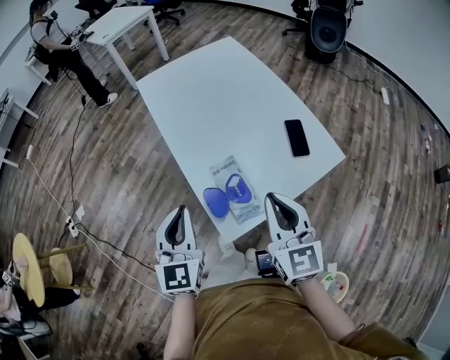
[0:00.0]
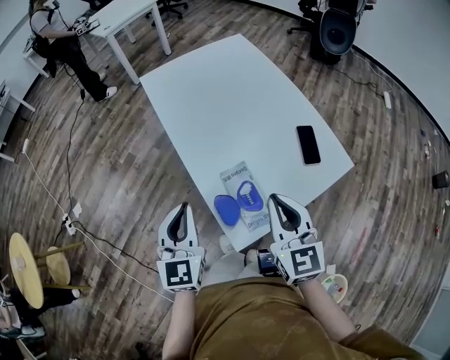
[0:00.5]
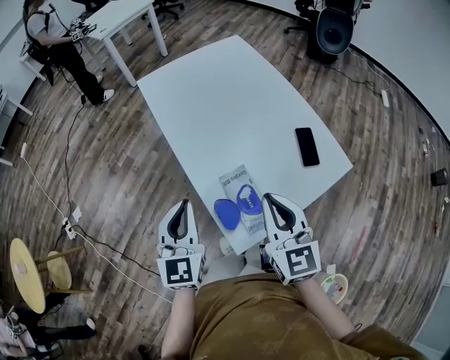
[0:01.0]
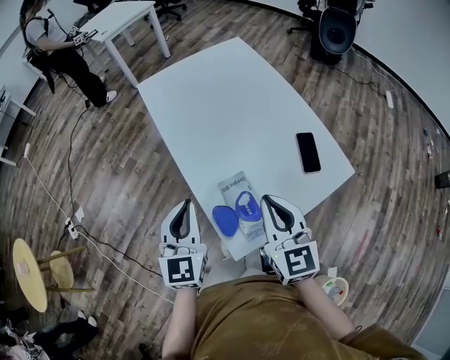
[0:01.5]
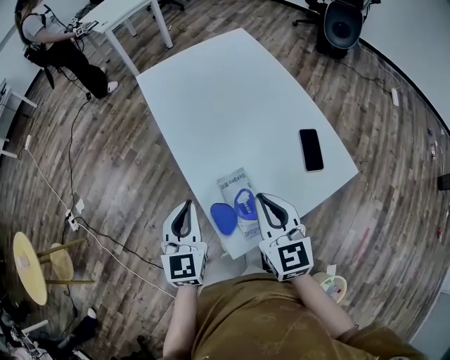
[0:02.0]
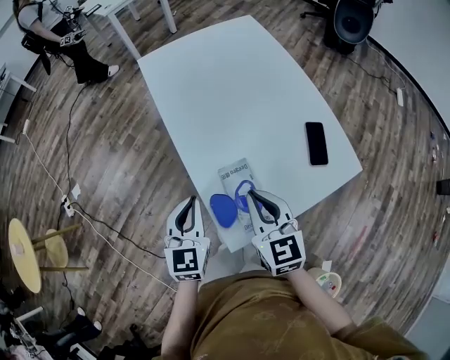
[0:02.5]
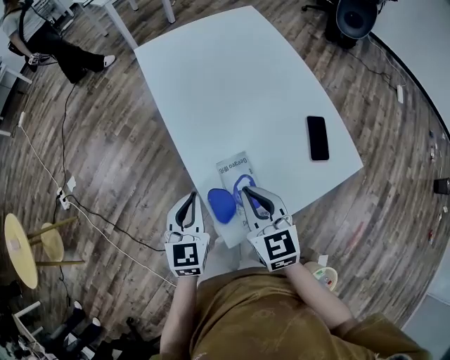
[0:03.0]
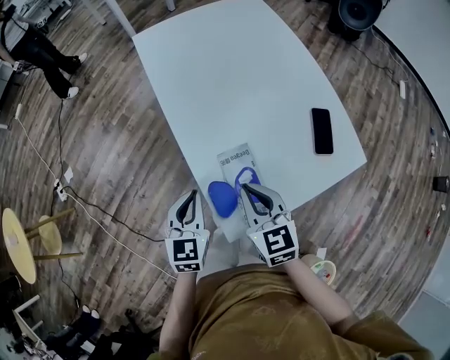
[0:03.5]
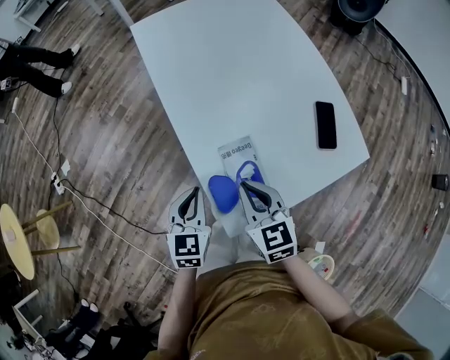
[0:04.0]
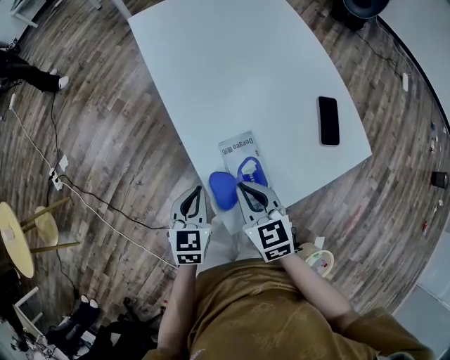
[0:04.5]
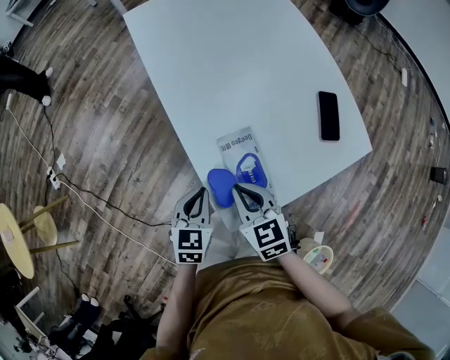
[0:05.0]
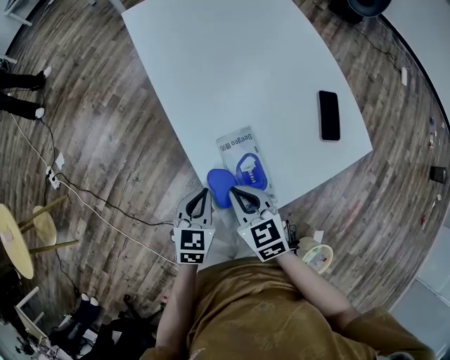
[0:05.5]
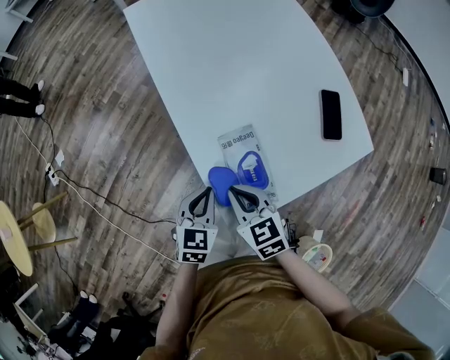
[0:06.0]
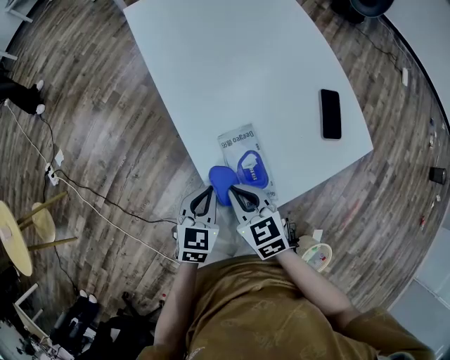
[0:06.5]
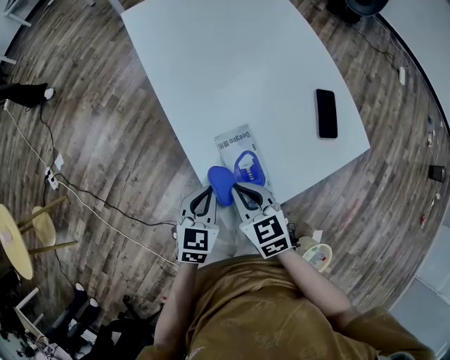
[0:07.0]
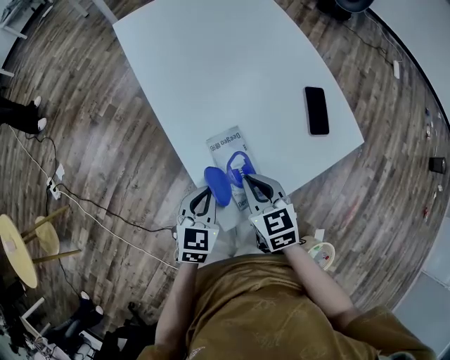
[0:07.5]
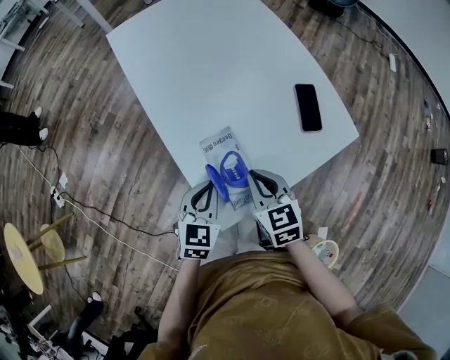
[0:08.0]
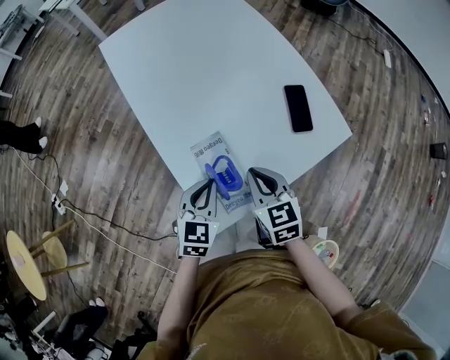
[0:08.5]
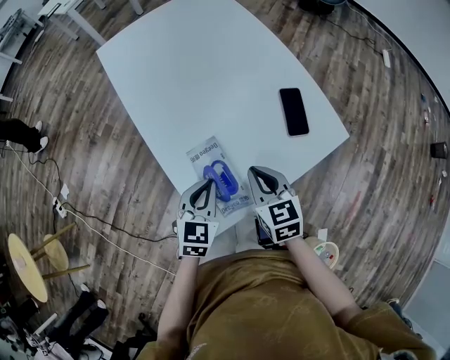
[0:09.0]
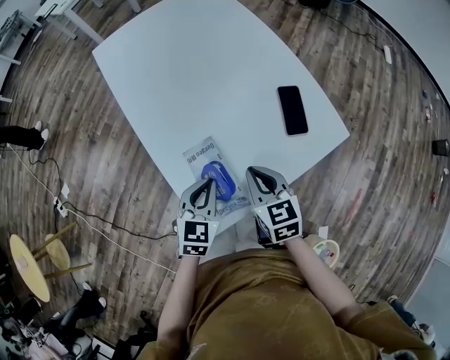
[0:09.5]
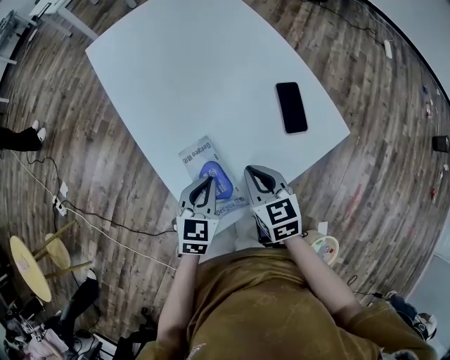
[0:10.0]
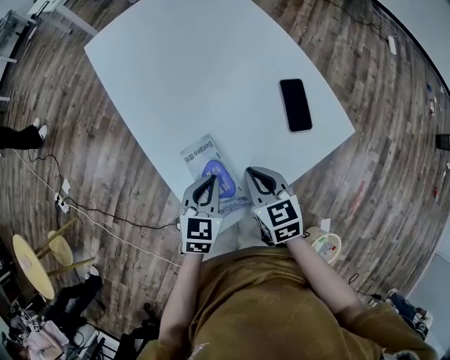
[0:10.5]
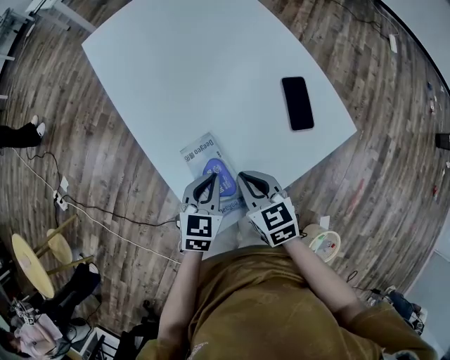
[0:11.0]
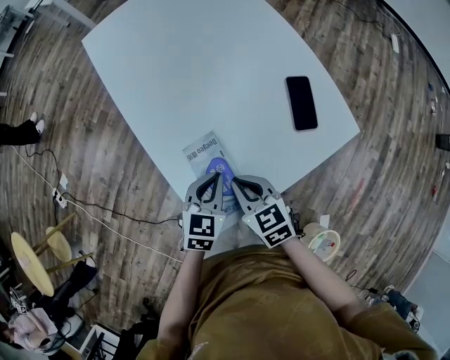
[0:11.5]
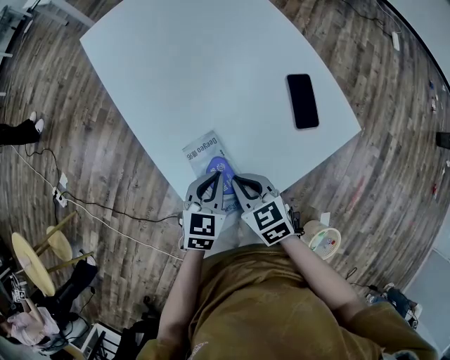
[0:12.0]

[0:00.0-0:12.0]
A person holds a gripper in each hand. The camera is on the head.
0:00.0 to 0:02.0: The grippers both shift forward and downward by approximately 10 cm.
0:02.0 to 0:04.0: The right gripper travels downward and to the left by some 15 cm, while the left gripper travels downward by approximately 10 cm.
0:04.0 to 0:06.0: The two grippers go approximately 5 cm downward.
0:06.0 to 0:08.0: The left gripper moves to the right, approximately 5 cm. The right gripper travels to the right by some 10 cm.
0:08.0 to 0:10.0: Both grippers travel together to the right, approximately 5 cm.
0:10.0 to 0:12.0: The right gripper travels to the left by approximately 5 cm.

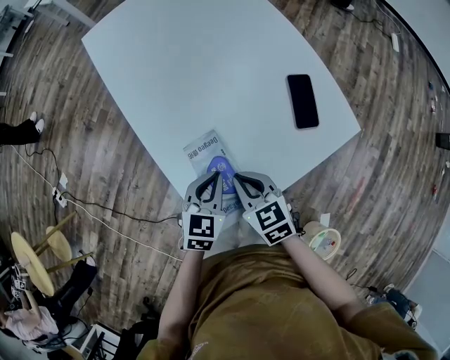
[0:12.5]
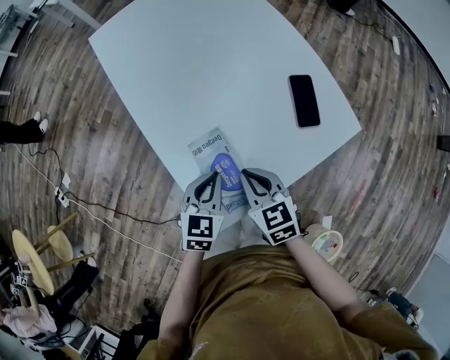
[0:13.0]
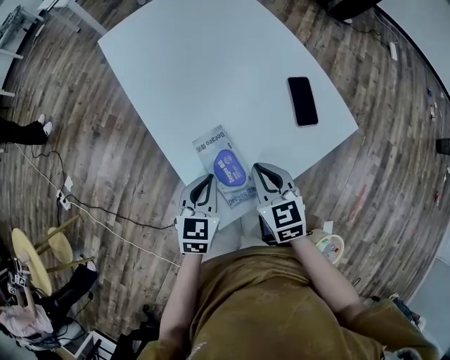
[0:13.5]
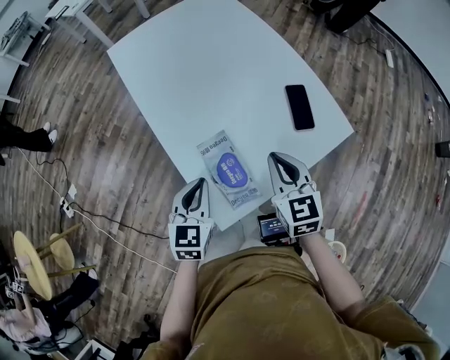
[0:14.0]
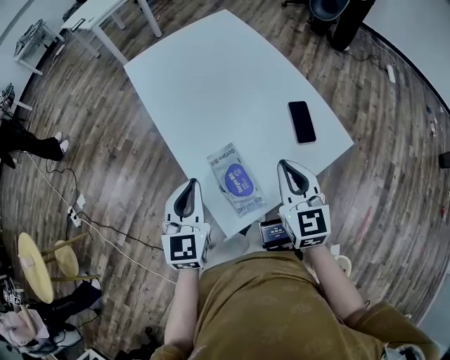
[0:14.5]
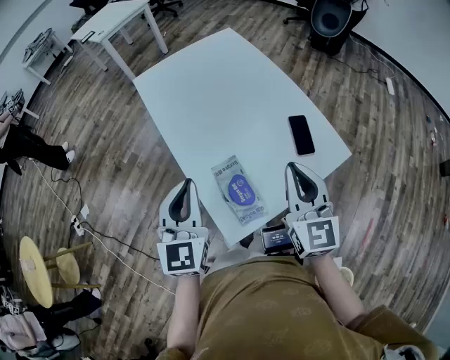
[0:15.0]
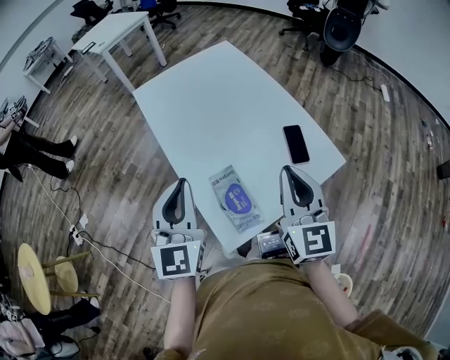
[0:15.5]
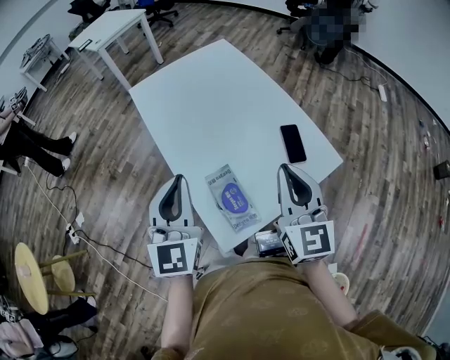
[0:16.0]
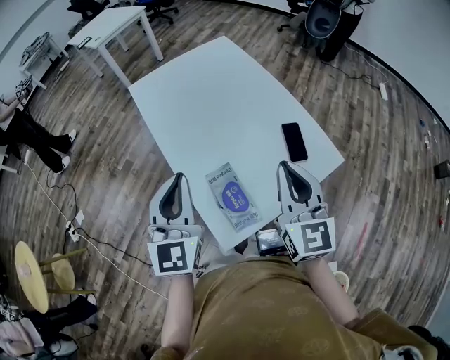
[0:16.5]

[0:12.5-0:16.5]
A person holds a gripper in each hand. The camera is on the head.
0:12.5 to 0:14.5: The left gripper shifts some 20 cm upward and to the left, and swivels some 30 degrees. The right gripper is displaced upward and to the right by approximately 20 cm, and turns by approximately 30 degrees.
0:14.5 to 0:16.5: Both grippers move upward, roughly 10 cm.

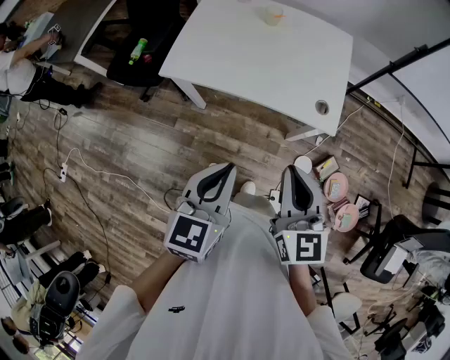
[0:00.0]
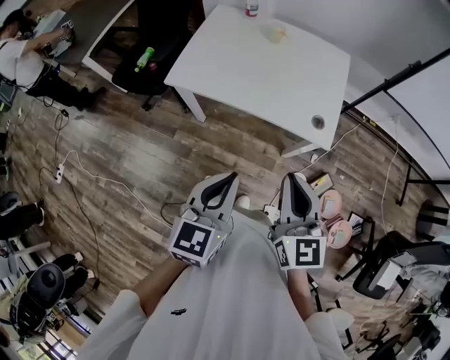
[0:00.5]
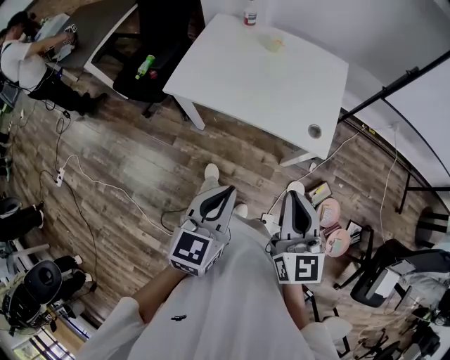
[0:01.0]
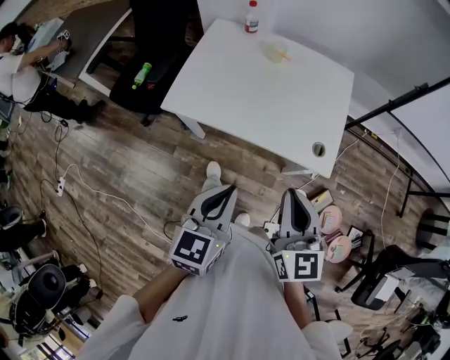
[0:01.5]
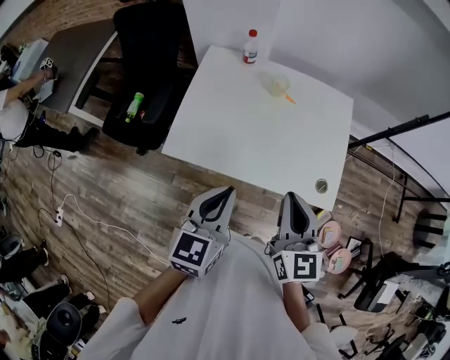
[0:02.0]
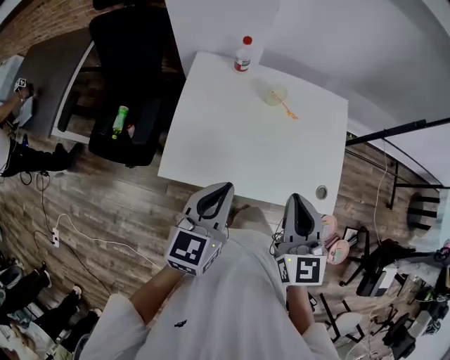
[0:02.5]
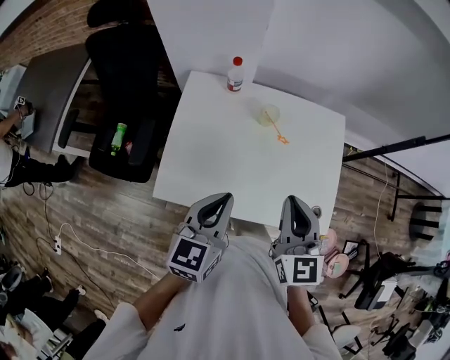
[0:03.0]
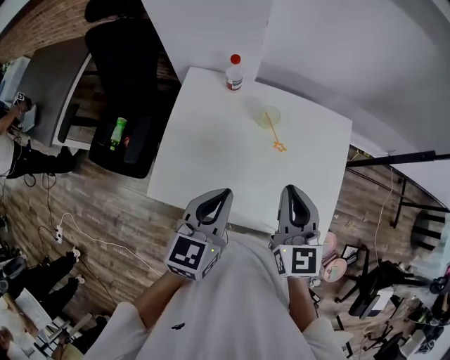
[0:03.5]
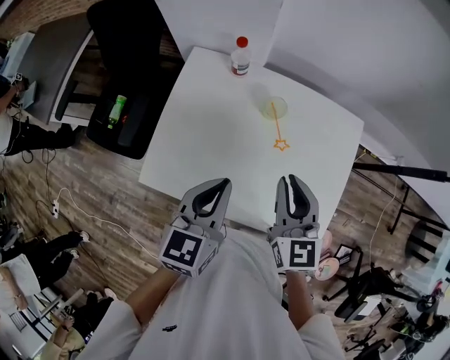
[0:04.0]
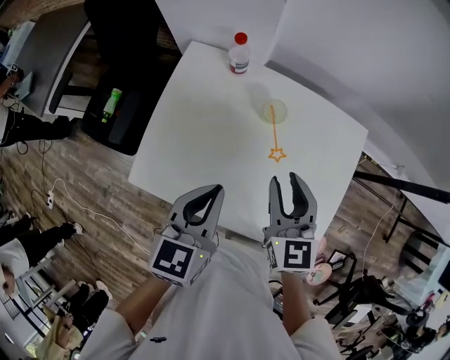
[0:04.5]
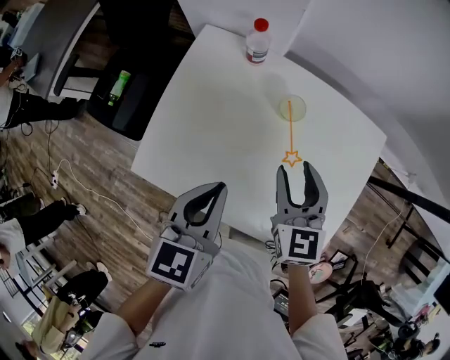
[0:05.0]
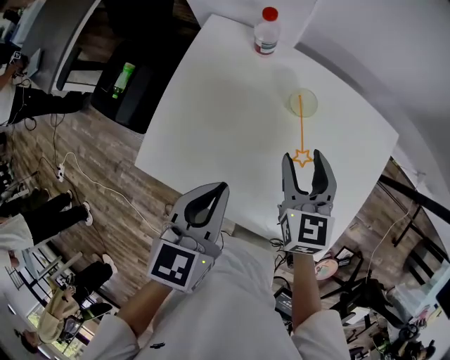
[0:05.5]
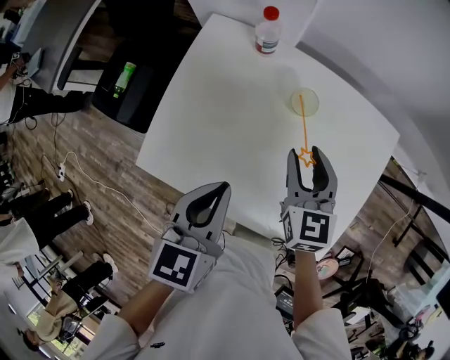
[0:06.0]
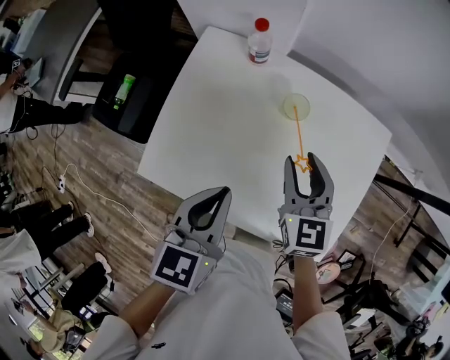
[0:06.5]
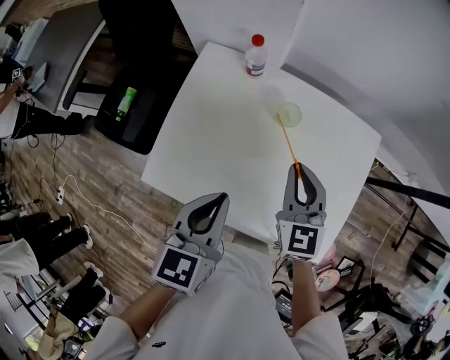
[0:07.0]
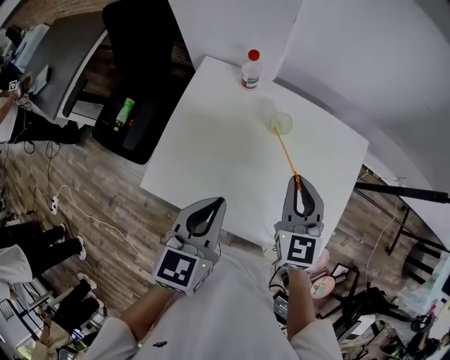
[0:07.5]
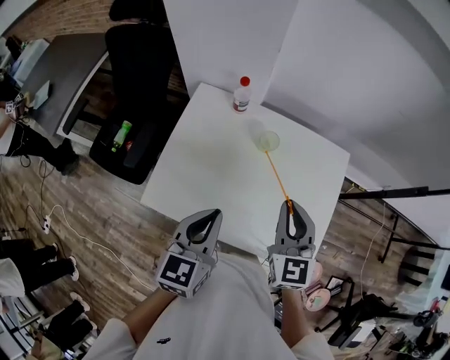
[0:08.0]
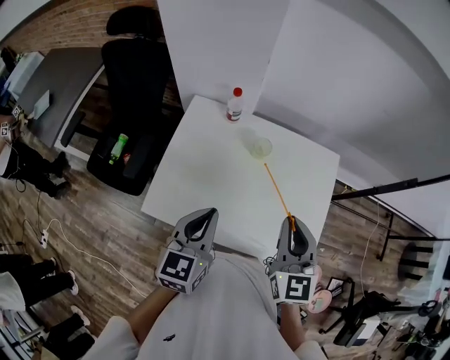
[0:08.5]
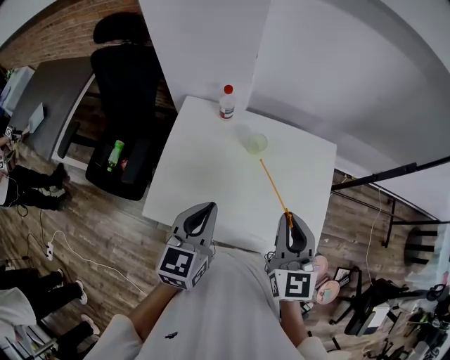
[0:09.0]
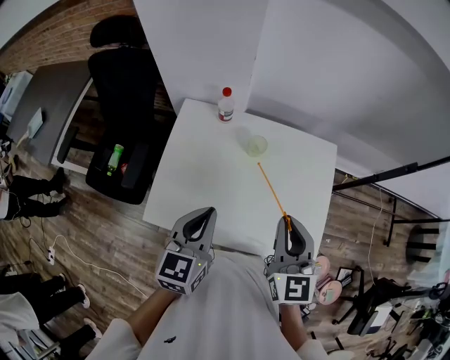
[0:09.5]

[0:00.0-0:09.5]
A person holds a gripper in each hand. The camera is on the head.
0:00.0 to 0:02.0: The two grippers go some 20 cm forward and to the left.
0:02.0 to 0:04.0: The two grippers go approximately 20 cm forward.
0:04.0 to 0:05.5: The left gripper ends up roughly 5 cm from where it was; the right gripper is displaced downward and forward by roughly 15 cm, and opens.
0:05.5 to 0:07.5: The left gripper travels upward by some 5 cm. Meanwhile the right gripper heads upward, covering roughly 10 cm, and closes up.
0:07.5 to 0:09.5: The right gripper is displaced backward and upward by some 15 cm.

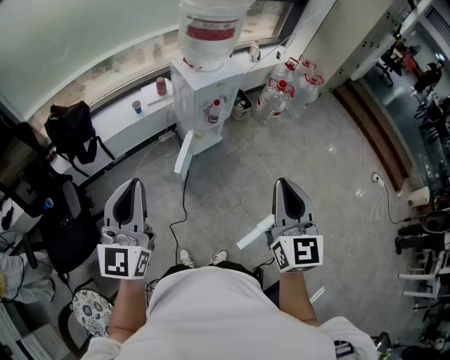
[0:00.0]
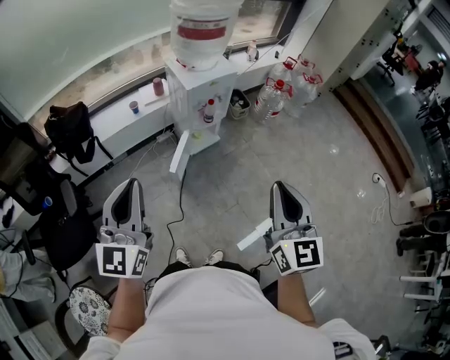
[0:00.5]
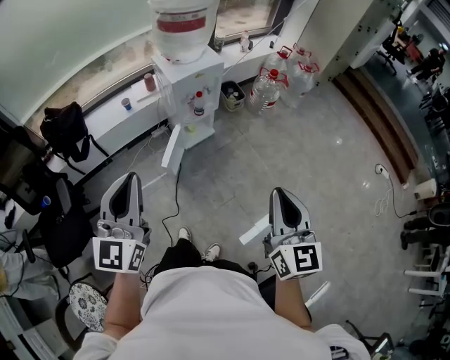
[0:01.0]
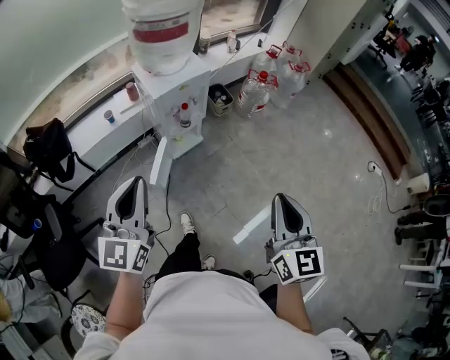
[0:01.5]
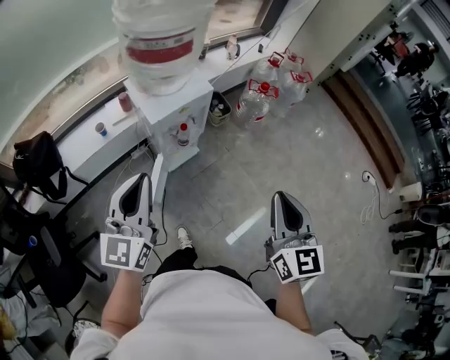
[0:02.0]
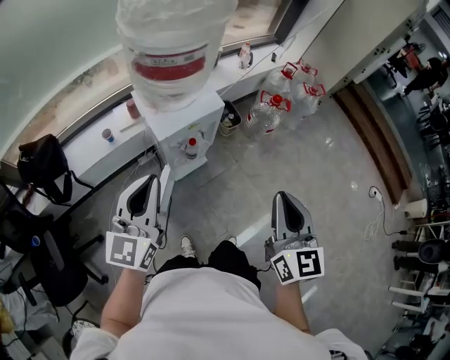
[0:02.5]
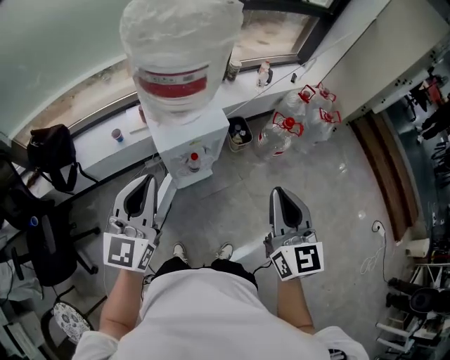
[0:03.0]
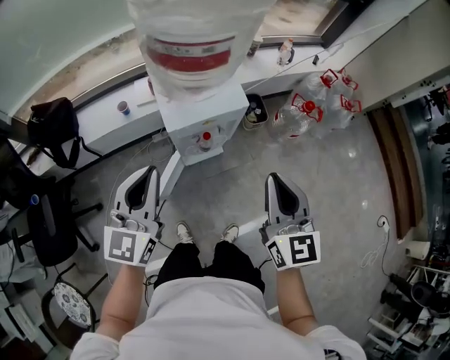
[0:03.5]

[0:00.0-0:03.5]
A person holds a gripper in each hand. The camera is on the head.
0:00.0 to 0:02.0: The two grippers go roughly 25 cm forward and to the right.
0:02.0 to 0:03.5: The left gripper shifts about 10 cm forward. Meanwhile the right gripper travels forward by some 20 cm.
